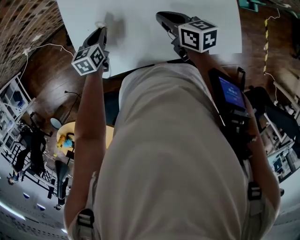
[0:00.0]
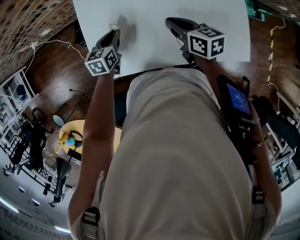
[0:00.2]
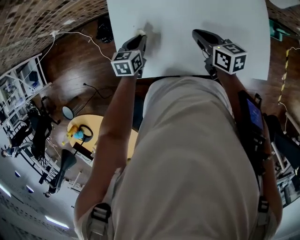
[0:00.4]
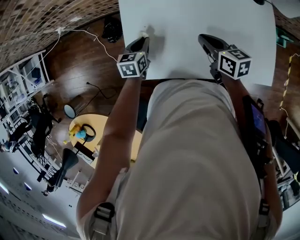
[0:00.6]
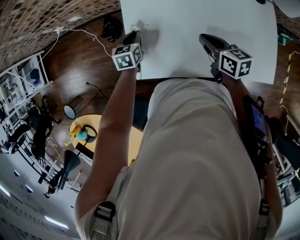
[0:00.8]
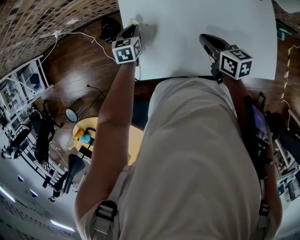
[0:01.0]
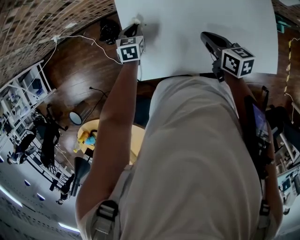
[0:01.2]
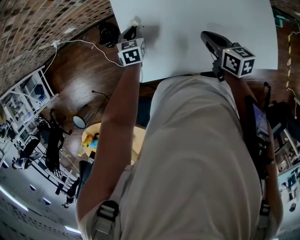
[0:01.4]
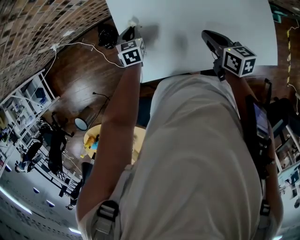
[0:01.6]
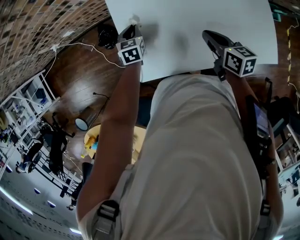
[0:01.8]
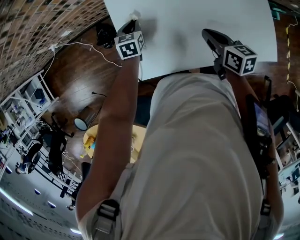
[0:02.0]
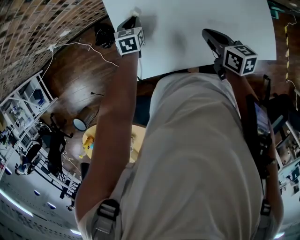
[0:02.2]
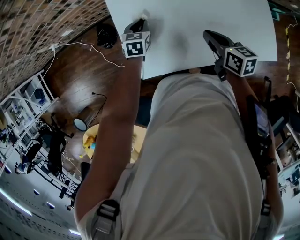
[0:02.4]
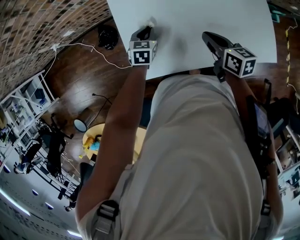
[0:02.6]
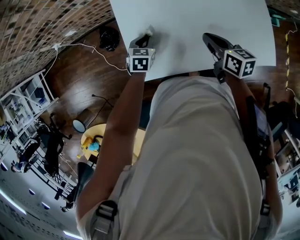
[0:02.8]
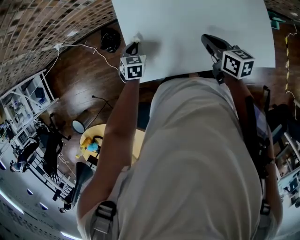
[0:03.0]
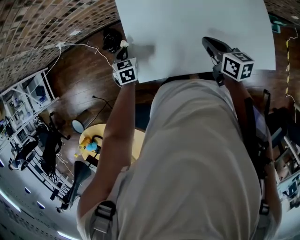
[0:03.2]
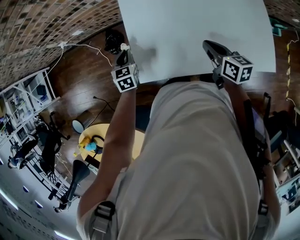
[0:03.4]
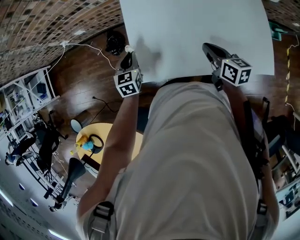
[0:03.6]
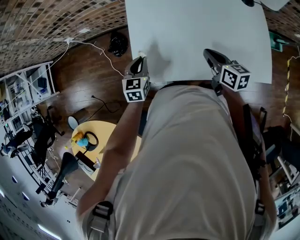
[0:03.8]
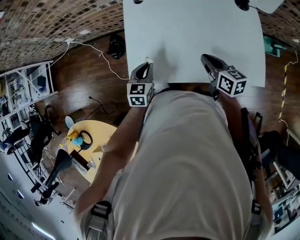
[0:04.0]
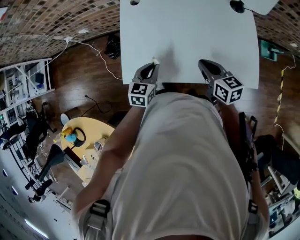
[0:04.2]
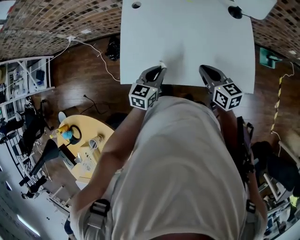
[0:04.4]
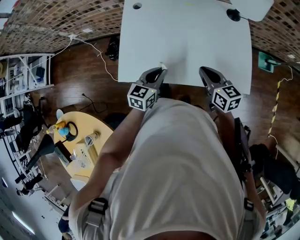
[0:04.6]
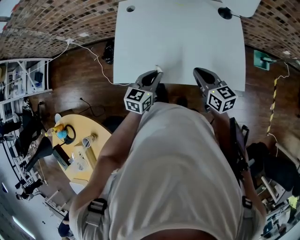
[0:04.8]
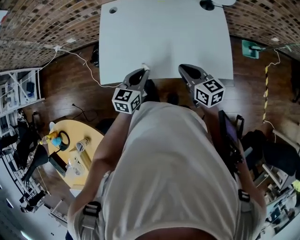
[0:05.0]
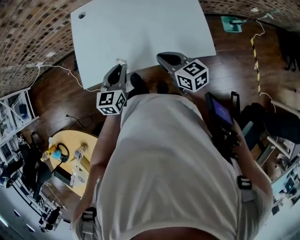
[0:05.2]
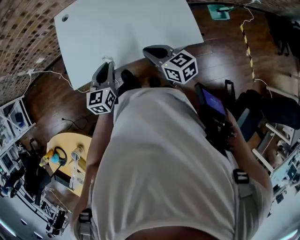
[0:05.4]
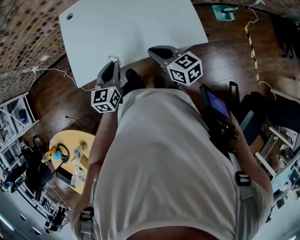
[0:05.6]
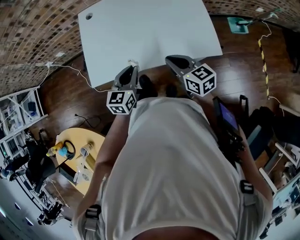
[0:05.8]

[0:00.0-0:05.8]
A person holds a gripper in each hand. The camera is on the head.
0:00.0 to 0:01.4: The right gripper travels to the left by some 10 cm. Meanwhile the left gripper heads to the left and forward, covering some 10 cm.
0:01.4 to 0:02.8: The left gripper is displaced backward by about 5 cm.
0:02.8 to 0:04.4: The left gripper shifts about 25 cm backward, upward and to the right, and rotates some 20 degrees. Meanwhile the right gripper shifts some 15 cm backward, to the right and upward.
0:04.4 to 0:05.8: Both grippers move backward and to the right, about 15 cm.

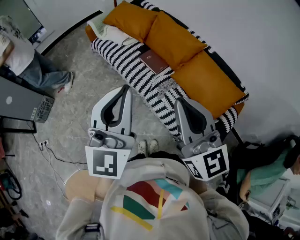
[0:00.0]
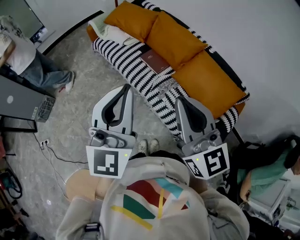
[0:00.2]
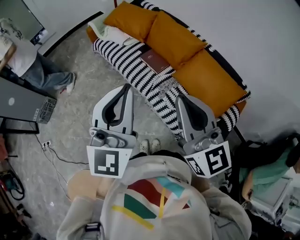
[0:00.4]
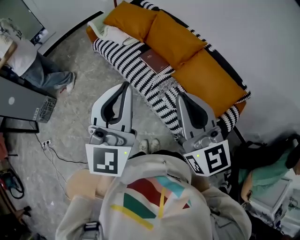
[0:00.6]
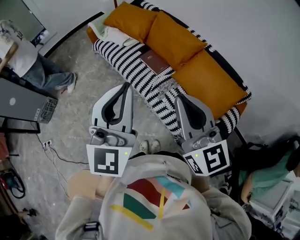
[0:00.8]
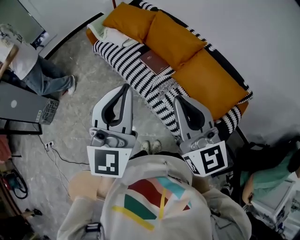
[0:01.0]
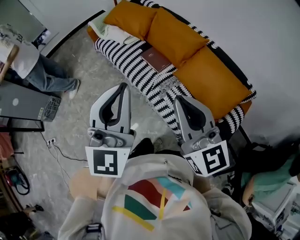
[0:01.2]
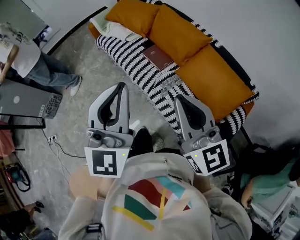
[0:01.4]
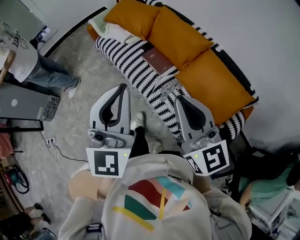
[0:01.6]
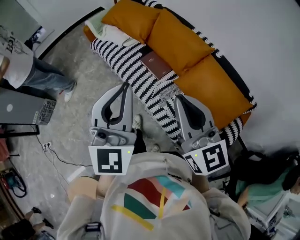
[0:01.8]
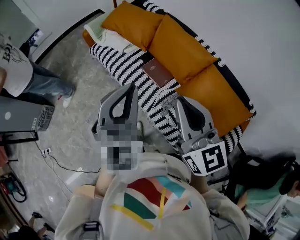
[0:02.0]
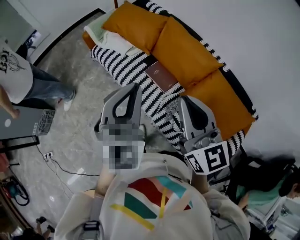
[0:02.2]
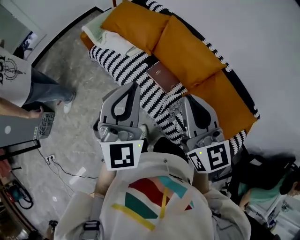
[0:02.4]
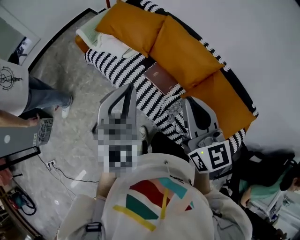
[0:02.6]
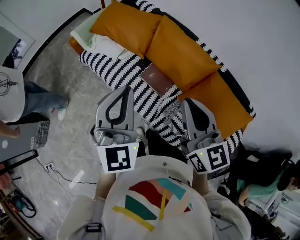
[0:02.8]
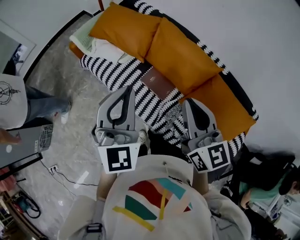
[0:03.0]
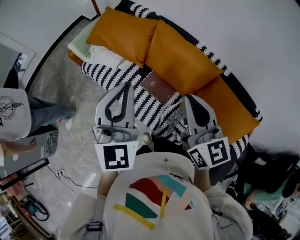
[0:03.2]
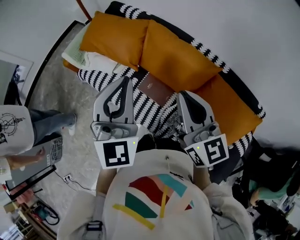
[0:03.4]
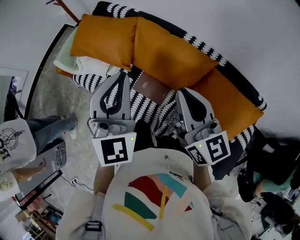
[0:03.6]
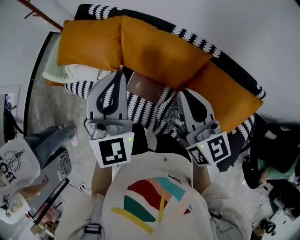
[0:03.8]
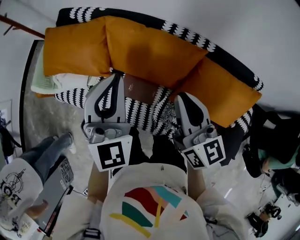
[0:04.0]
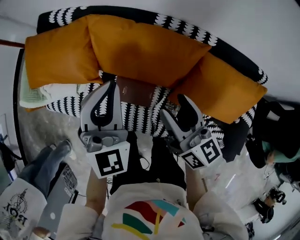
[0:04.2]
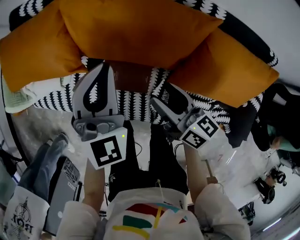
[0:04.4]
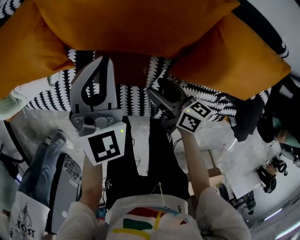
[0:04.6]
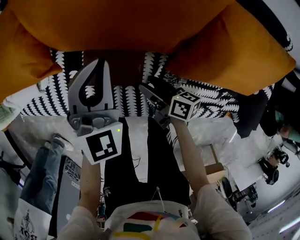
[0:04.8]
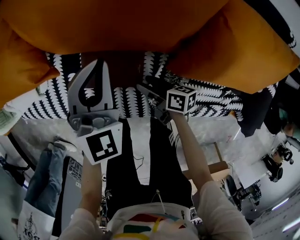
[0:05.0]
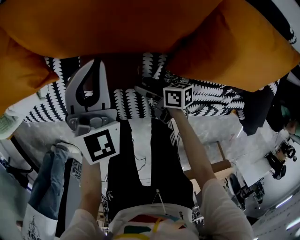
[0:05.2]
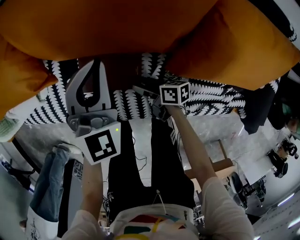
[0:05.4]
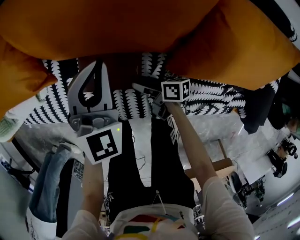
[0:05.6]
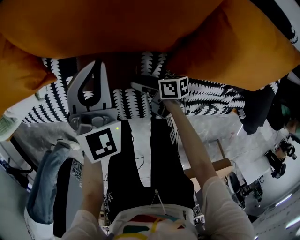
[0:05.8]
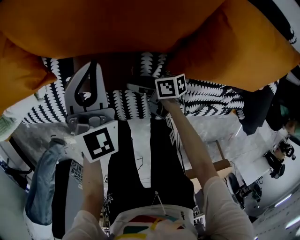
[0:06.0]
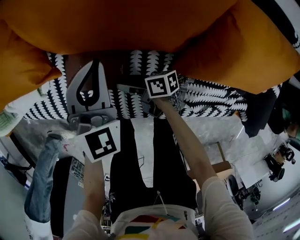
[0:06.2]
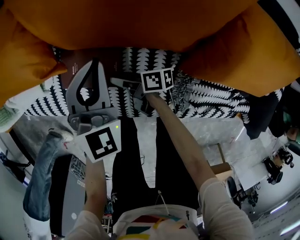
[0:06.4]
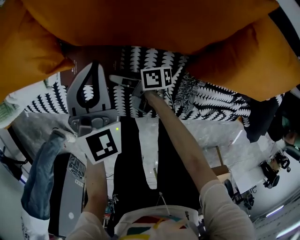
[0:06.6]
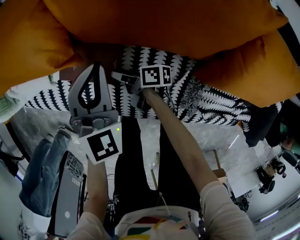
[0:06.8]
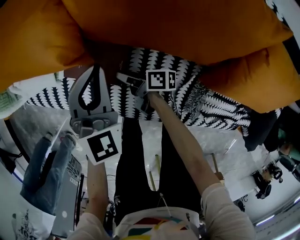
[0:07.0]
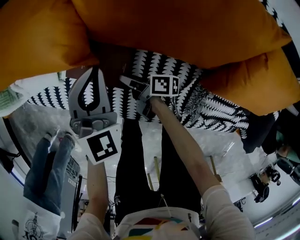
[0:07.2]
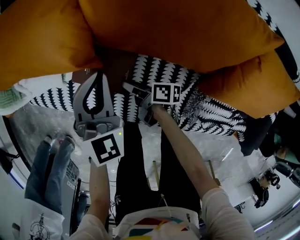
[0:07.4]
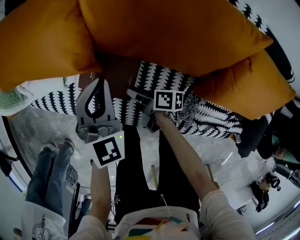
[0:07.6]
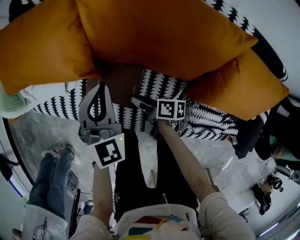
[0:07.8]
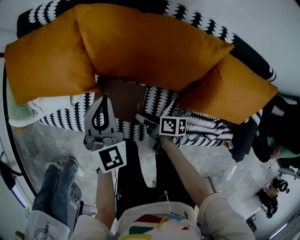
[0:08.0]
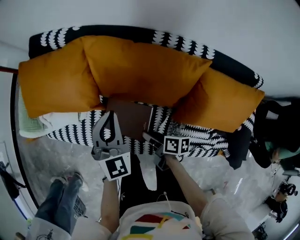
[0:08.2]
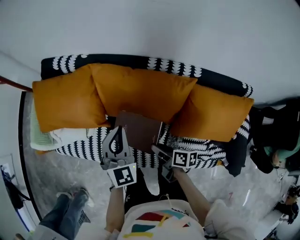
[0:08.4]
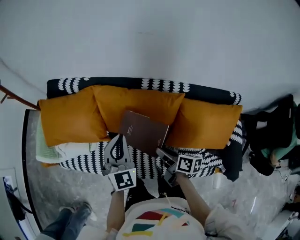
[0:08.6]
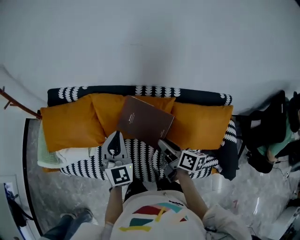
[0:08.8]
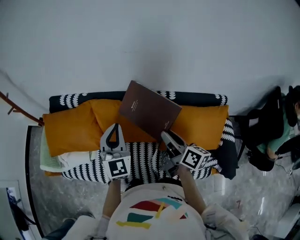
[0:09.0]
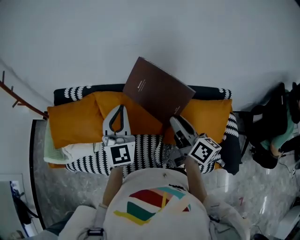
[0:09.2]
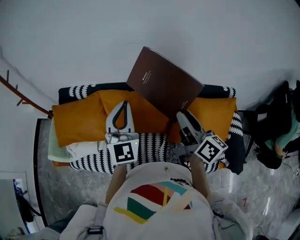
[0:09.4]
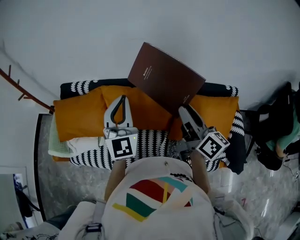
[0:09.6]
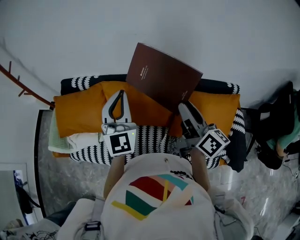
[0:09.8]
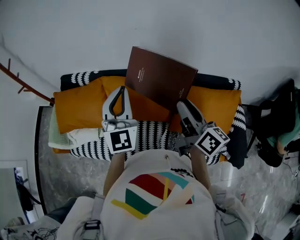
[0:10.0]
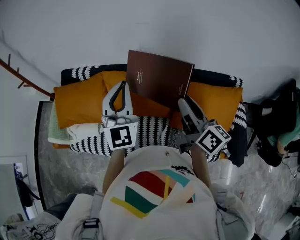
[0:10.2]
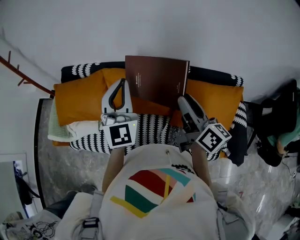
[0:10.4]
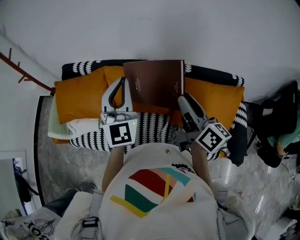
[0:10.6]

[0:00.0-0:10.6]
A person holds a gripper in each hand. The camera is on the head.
0:00.0 to 0:01.6: The grippers both shift forward and to the right by approximately 10 cm.
0:01.6 to 0:03.0: Both grippers travel together forward, some 30 cm.
0:03.0 to 0:04.6: The right gripper heads downward, covering some 50 cm, rolls clockwise, seen from behind, by approximately 50 degrees, and opens up. Meanwhile the left gripper is displaced downward, forward and to the right by some 50 cm, and changes its angle by some 30 degrees.
0:04.6 to 0:06.0: The right gripper travels downward by about 15 cm, and rotates some 30 degrees; the left gripper goes about 10 cm downward.
0:06.0 to 0:07.6: Both grippers move to the left and forward, roughly 15 cm. The right gripper closes its fingers.
0:07.6 to 0:09.0: Both grippers move upward, about 40 cm. The right gripper changes its angle by some 50 degrees. Meanwhile the left gripper swivels approximately 20 degrees.
0:09.0 to 0:10.6: Both grippers travel together upward, about 10 cm.

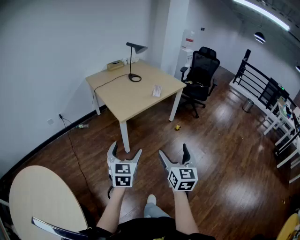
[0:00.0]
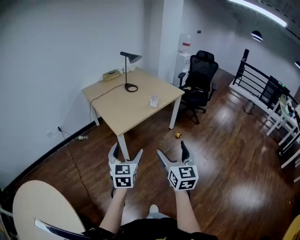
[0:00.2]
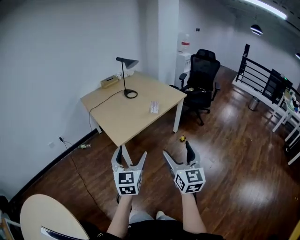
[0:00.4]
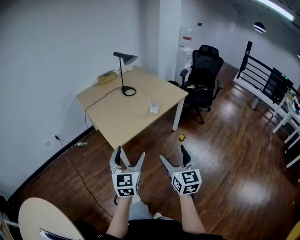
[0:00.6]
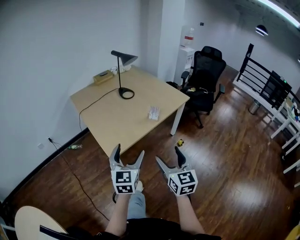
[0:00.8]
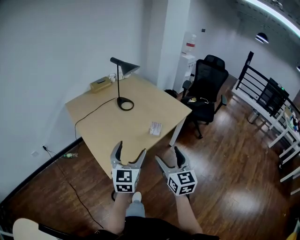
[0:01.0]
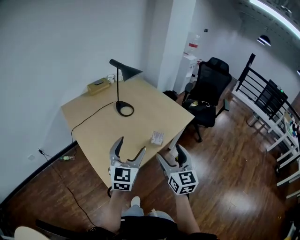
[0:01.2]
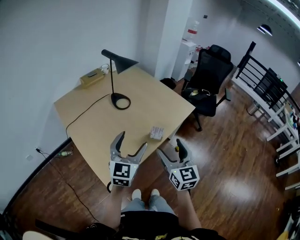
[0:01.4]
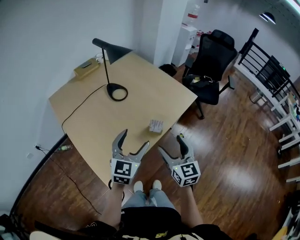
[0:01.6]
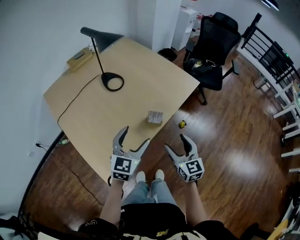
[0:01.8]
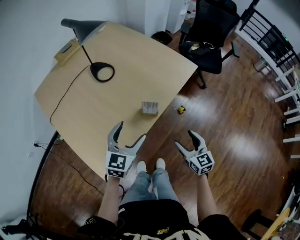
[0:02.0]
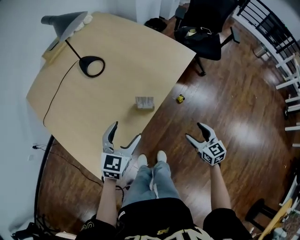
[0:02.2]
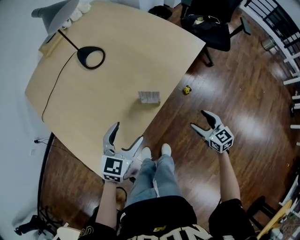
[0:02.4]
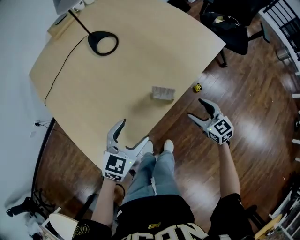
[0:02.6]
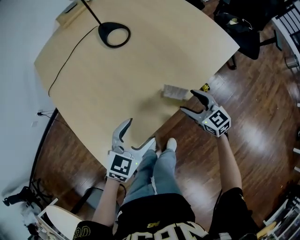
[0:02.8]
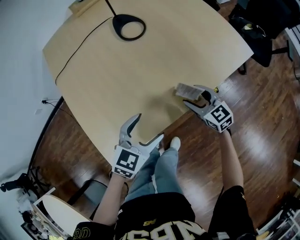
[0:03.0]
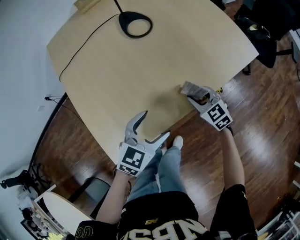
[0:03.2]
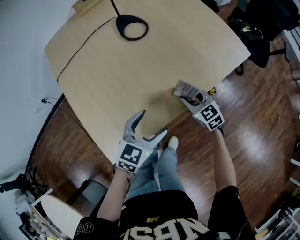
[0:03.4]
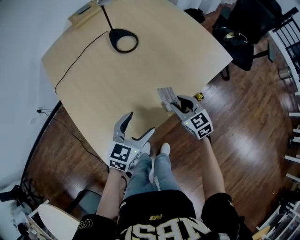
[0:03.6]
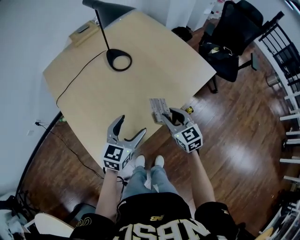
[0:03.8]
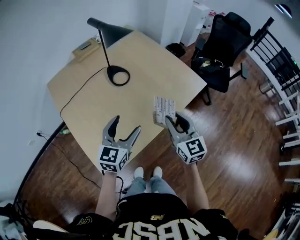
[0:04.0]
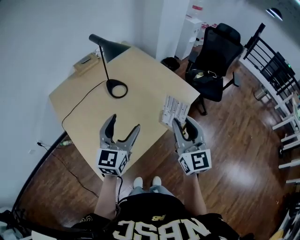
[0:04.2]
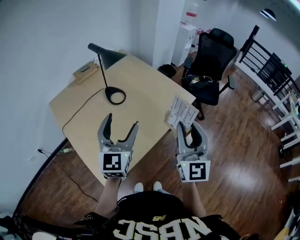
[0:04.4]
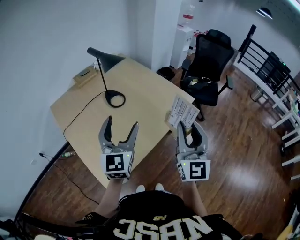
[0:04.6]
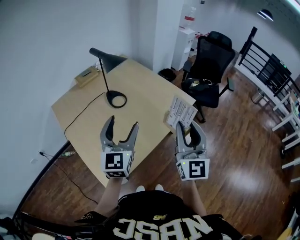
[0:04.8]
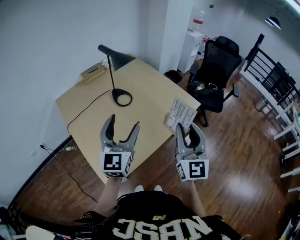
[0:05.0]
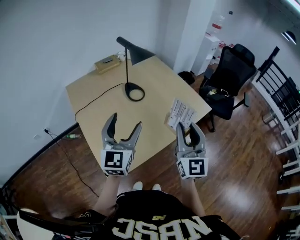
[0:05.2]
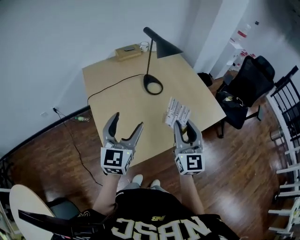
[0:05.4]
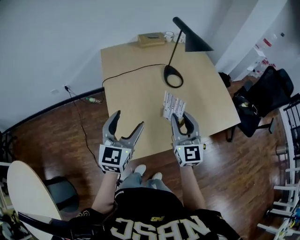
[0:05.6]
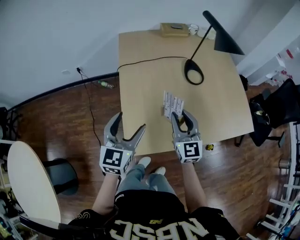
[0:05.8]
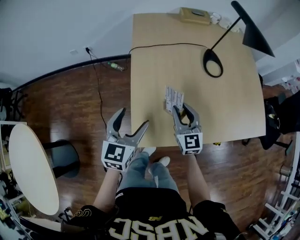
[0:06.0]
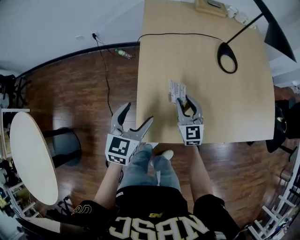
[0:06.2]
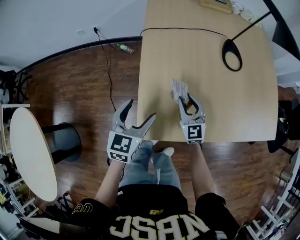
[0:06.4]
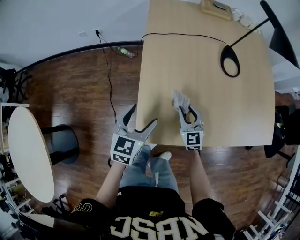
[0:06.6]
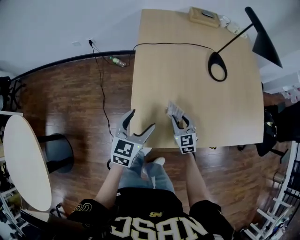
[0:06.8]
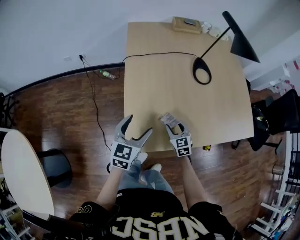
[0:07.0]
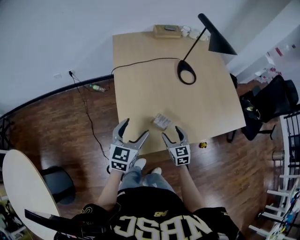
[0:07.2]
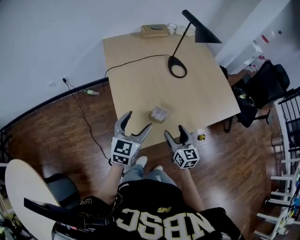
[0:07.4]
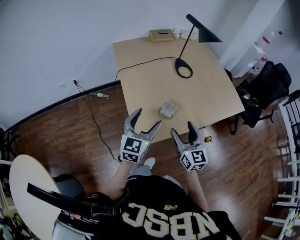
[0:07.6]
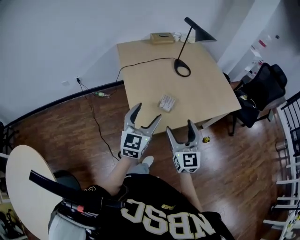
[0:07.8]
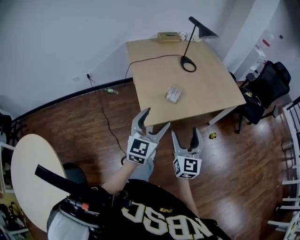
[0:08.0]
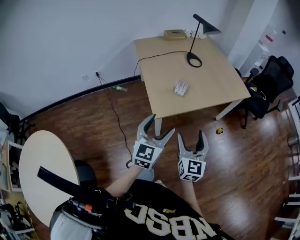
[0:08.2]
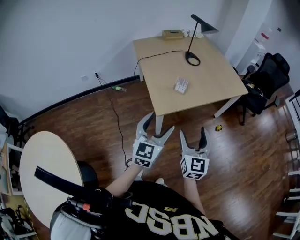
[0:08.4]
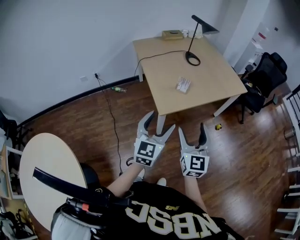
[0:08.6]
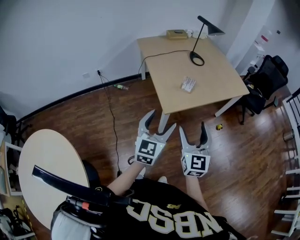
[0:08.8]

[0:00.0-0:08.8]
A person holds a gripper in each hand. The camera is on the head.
0:00.0 to 0:01.4: The two grippers travel together, forward, about 60 cm.
0:01.4 to 0:03.0: The right gripper goes approximately 40 cm downward and forward, and turns by some 40 degrees, while the left gripper moves downward, roughly 30 cm, and swivels approximately 30 degrees.
0:03.0 to 0:04.4: Both grippers move upward, some 40 cm. The right gripper angles its fingers upward, by about 40 degrees, and closes, while the left gripper tips its fingers upward by roughly 40 degrees.
0:04.4 to 0:05.8: The right gripper shifts by roughly 35 cm, and turns by about 50 degrees; the left gripper moves roughly 25 cm, and changes its angle by roughly 30 degrees.
0:05.8 to 0:07.4: The right gripper travels backward and downward by roughly 15 cm, turns by approximately 20 degrees, and opens its fingers. The left gripper goes downward and returns, some 15 cm each way.
0:07.4 to 0:08.8: The left gripper travels backward by some 35 cm, while the right gripper heads backward and upward, covering roughly 40 cm, and changes its angle by about 30 degrees.
